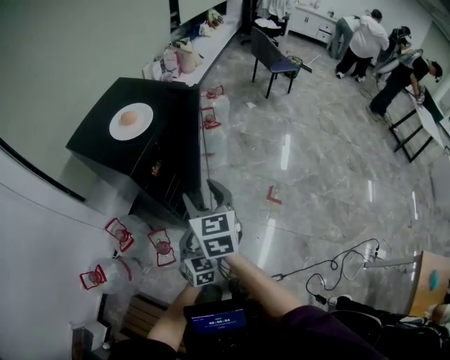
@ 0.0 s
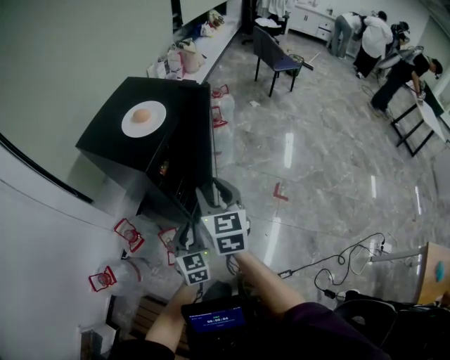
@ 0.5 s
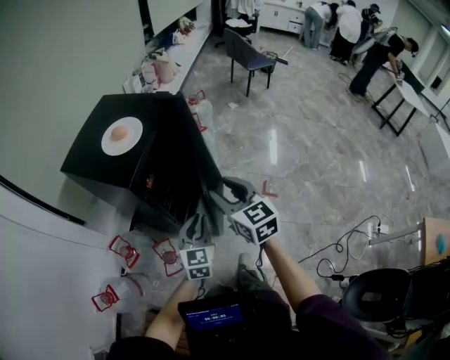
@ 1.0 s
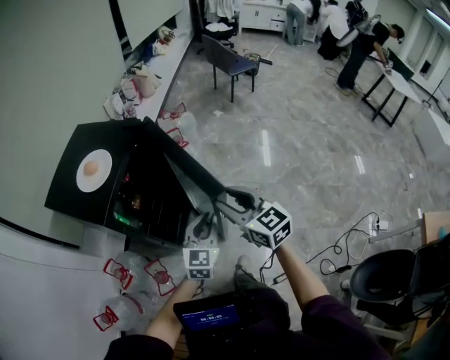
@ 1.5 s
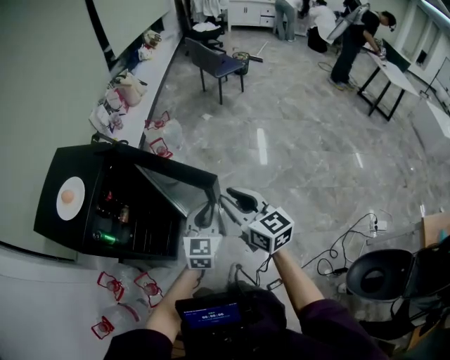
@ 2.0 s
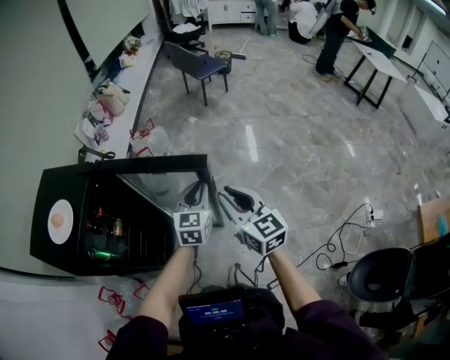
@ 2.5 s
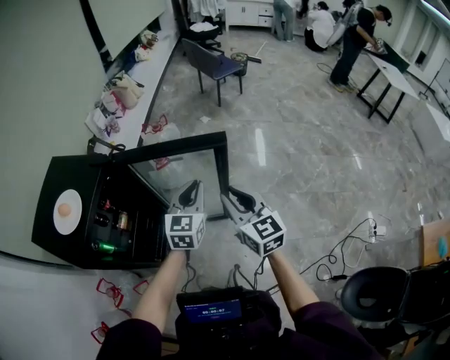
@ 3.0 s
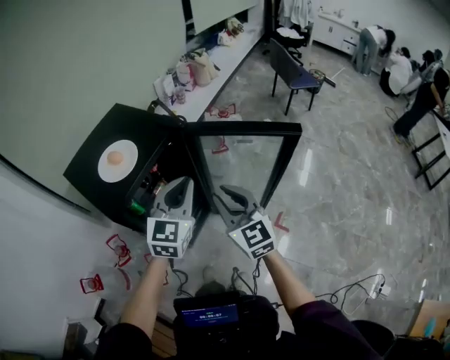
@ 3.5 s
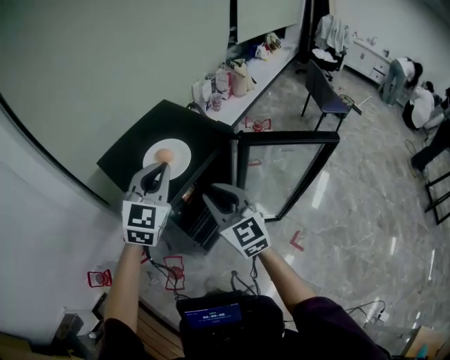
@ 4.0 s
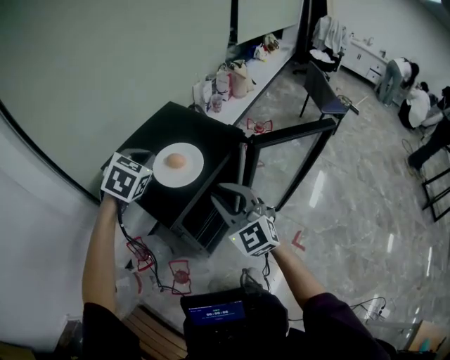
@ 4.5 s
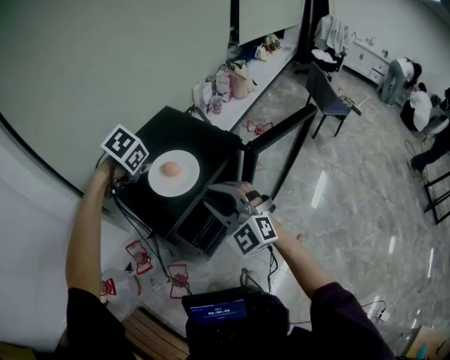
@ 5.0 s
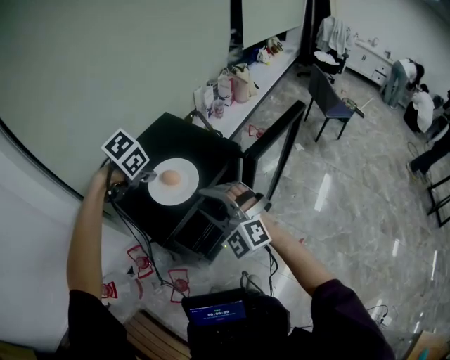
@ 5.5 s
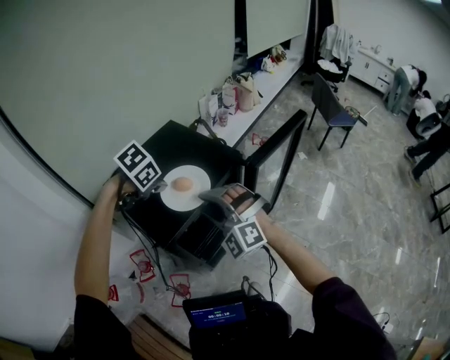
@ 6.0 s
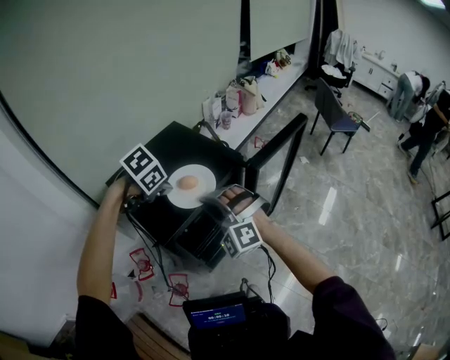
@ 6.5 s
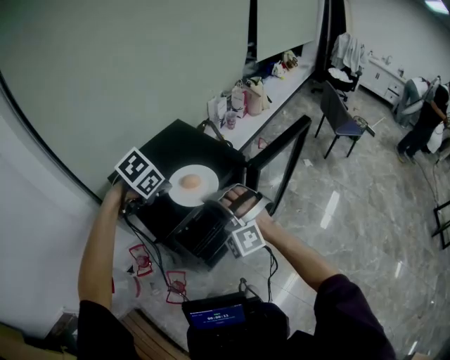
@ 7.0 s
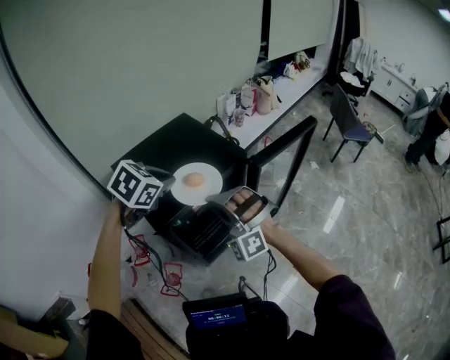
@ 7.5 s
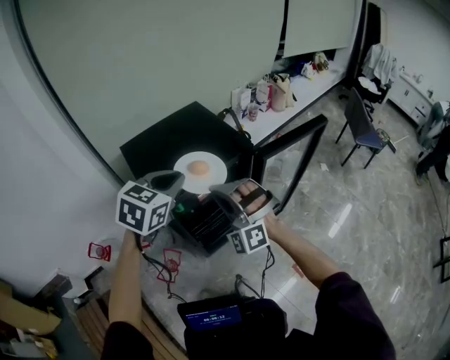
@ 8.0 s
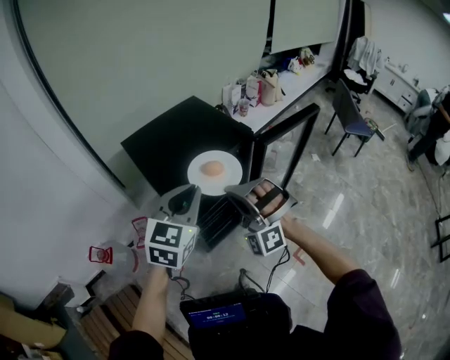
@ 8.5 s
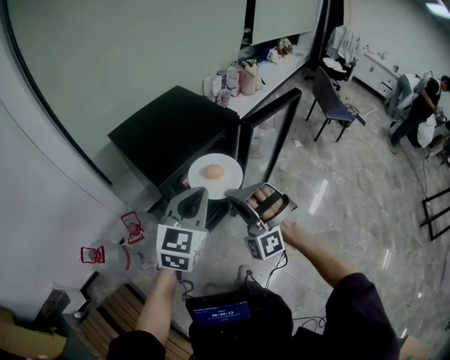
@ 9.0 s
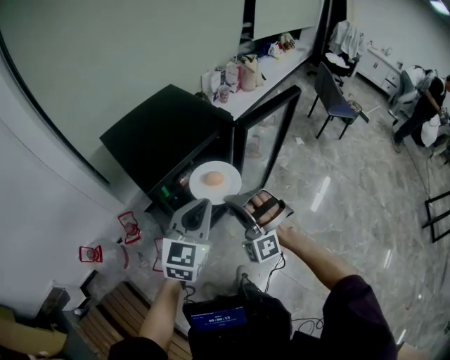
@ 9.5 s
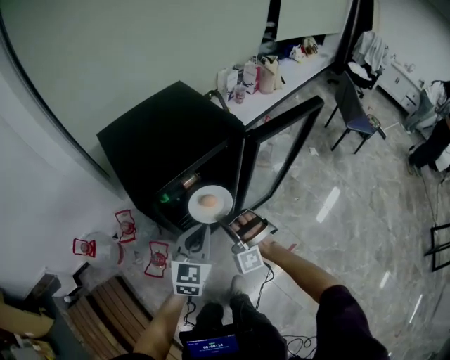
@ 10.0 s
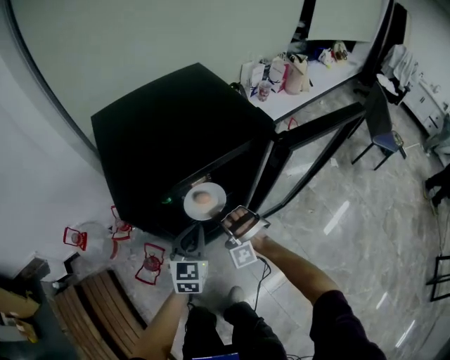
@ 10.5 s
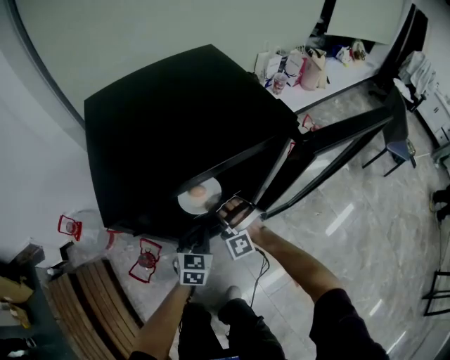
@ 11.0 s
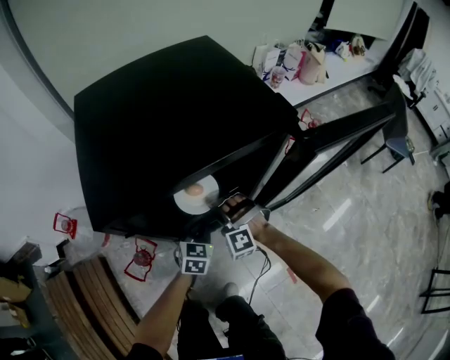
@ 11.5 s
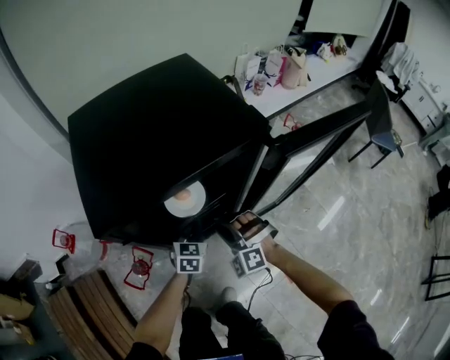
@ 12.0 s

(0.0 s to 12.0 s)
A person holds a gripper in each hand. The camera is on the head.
0.0 s - 2.0 s: The right gripper shifts about 30 cm to the right, and closes. Meanwhile the left gripper moves to the right and forward, approximately 30 cm, and changes its angle by some 30 degrees.
2.0 s - 4.0 s: The right gripper changes place by about 35 cm, and swivels about 40 degrees. The left gripper ends up roughly 50 cm from where it was, and turns by about 30 degrees.
4.0 s - 6.0 s: The left gripper is displaced downward and forward by approximately 10 cm, and angles its fingers downward, by some 60 degrees. Meanwhile the right gripper travels forward by some 5 cm, and twists some 60 degrees counterclockwise, seen from behind.
6.0 s - 8.0 s: The right gripper changes place by about 5 cm, and closes, while the left gripper moves backward, upward and to the right, roughly 15 cm, and points its fingers approximately 40 degrees further upward.
8.0 s - 10.0 s: The left gripper is displaced downward, backward and to the right by roughly 20 cm; the right gripper heads downward, covering approximately 20 cm, and changes its angle by about 20 degrees.
10.0 s - 12.0 s: The left gripper travels downward and forward by roughly 30 cm, and swivels about 20 degrees. Meanwhile the right gripper shifts about 15 cm downward and forward, and changes its angle by roughly 30 degrees.

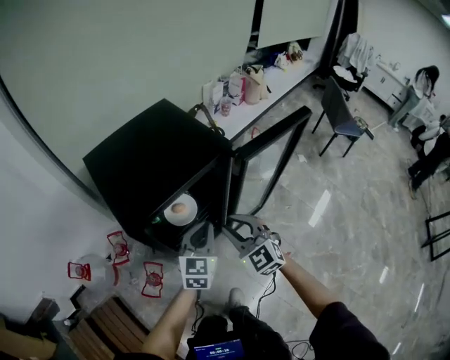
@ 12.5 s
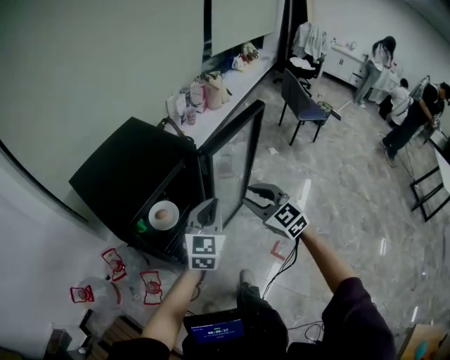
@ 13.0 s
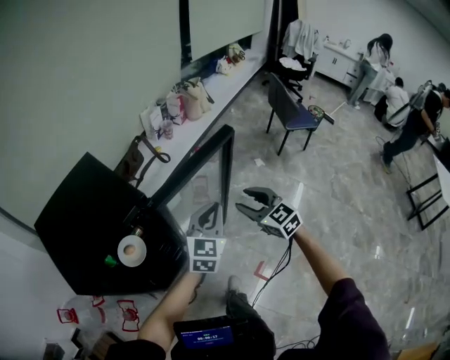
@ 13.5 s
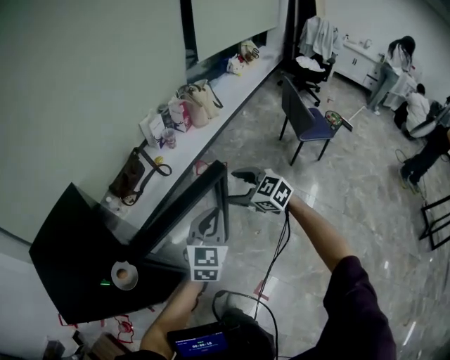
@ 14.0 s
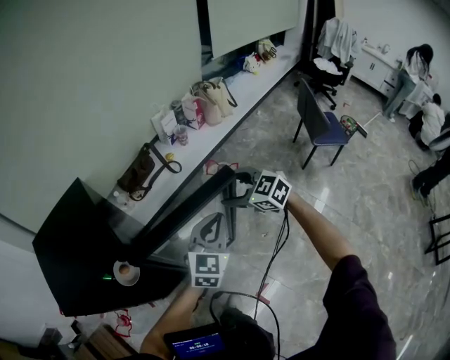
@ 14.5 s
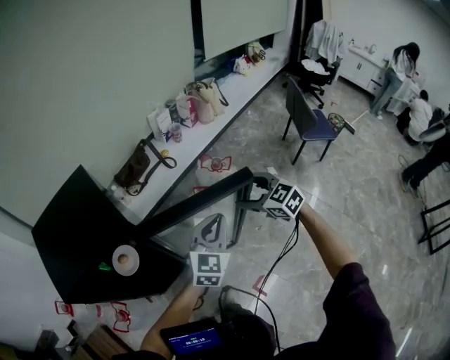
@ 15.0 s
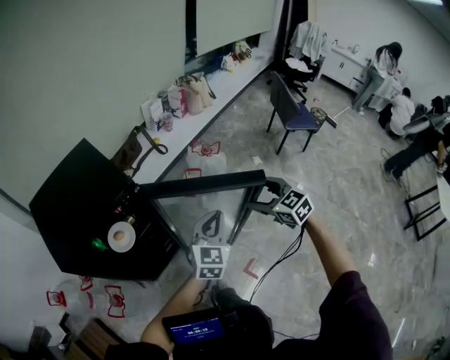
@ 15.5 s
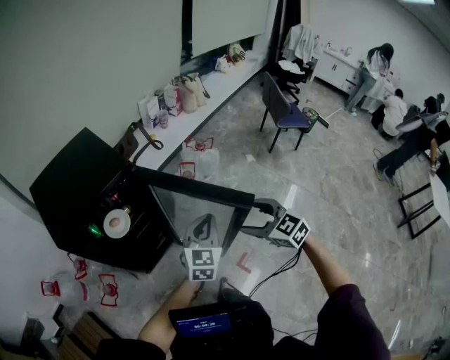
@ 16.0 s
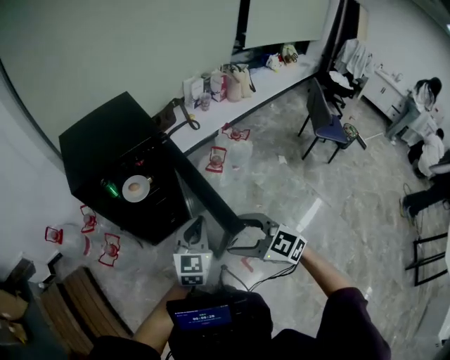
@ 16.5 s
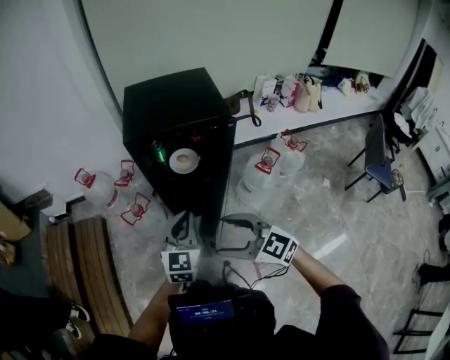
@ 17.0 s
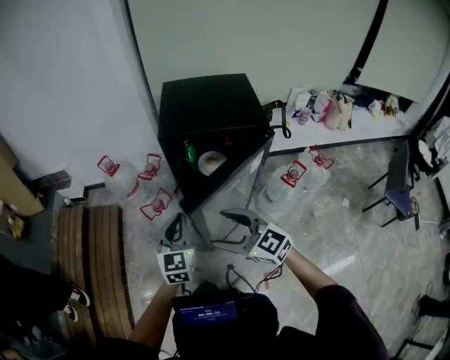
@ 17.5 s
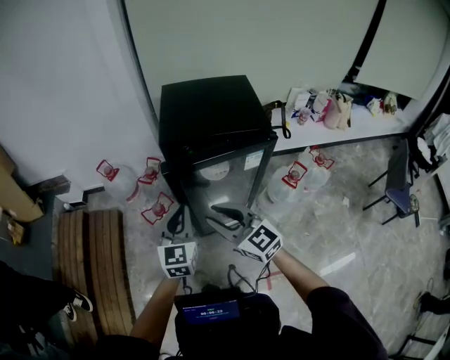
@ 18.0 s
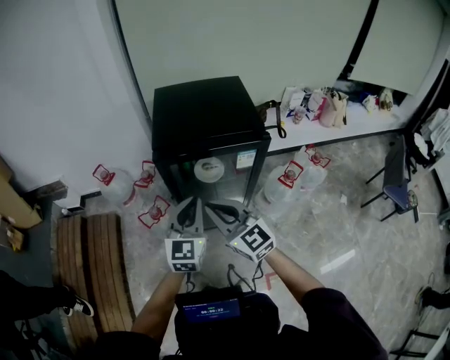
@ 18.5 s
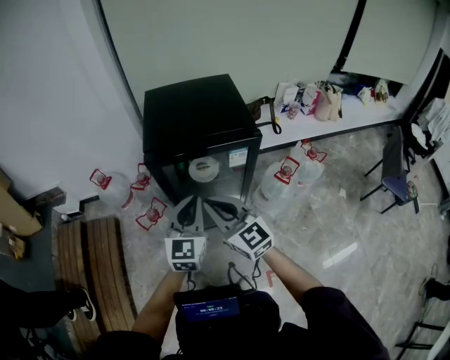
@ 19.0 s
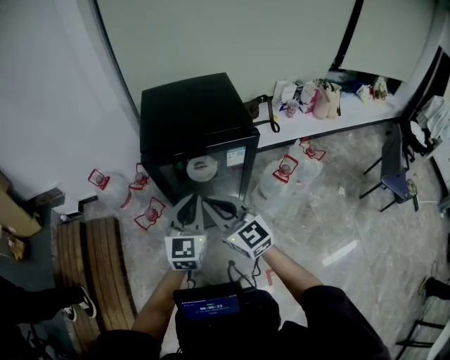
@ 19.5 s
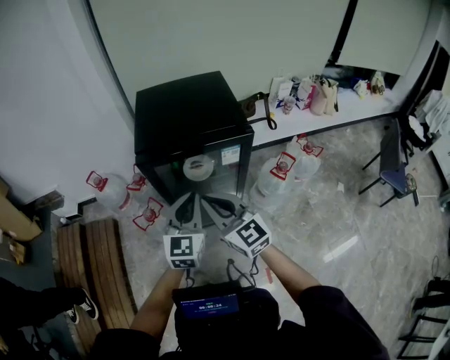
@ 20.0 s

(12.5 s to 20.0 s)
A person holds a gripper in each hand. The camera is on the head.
12.5 s - 14.5 s: The pair of grippers is taken to the right and forward, some 40 cm. The right gripper swivels approximately 30 degrees, and opens.
14.5 s - 16.5 s: The right gripper shifts by about 50 cm, while the left gripper ends up roughly 35 cm from where it was.
16.5 s - 18.0 s: The left gripper moves about 30 cm, and changes its angle by approximately 40 degrees. Meanwhile the right gripper shifts by approximately 25 cm, turns by about 20 degrees, and closes.
18.0 s - 20.0 s: The left gripper travels to the right by about 10 cm; the right gripper heads to the right, covering about 5 cm, and closes up.

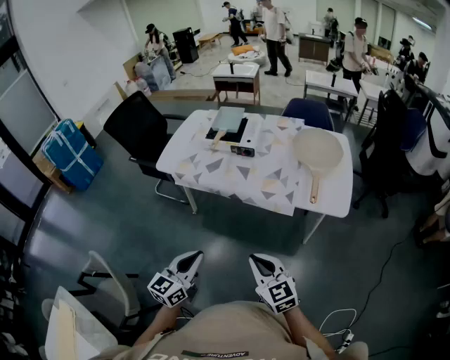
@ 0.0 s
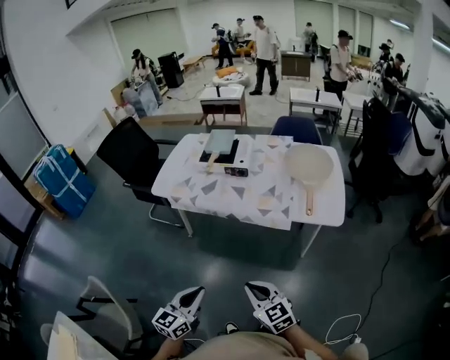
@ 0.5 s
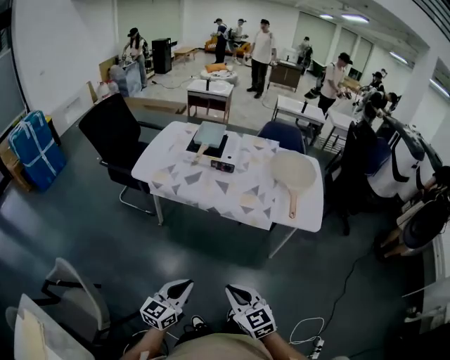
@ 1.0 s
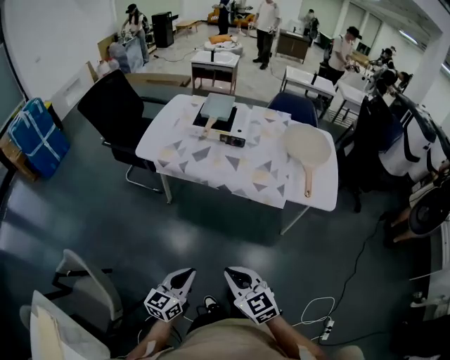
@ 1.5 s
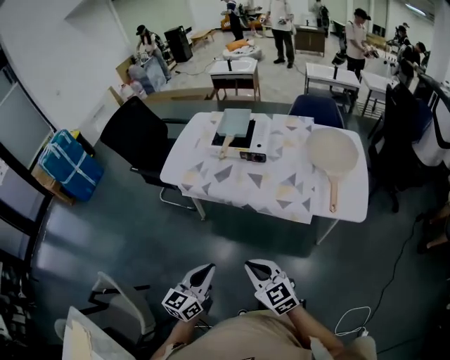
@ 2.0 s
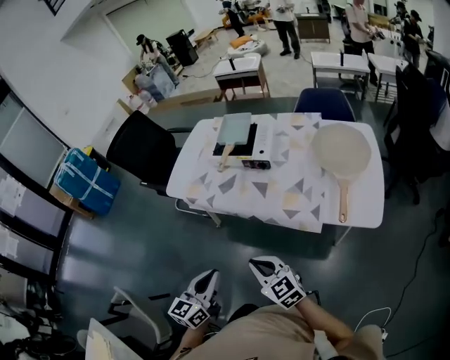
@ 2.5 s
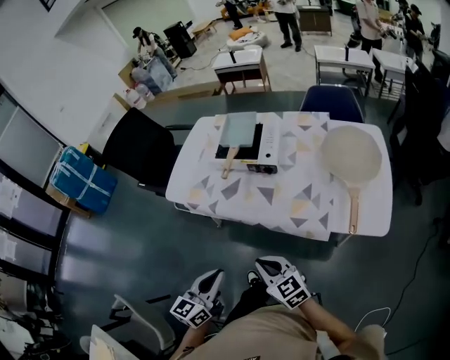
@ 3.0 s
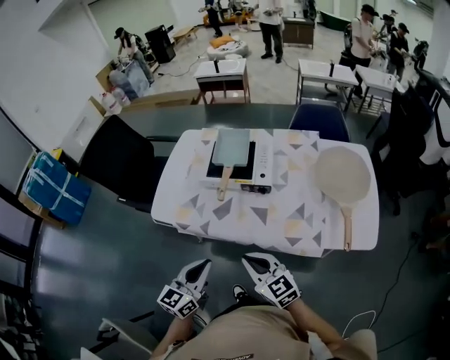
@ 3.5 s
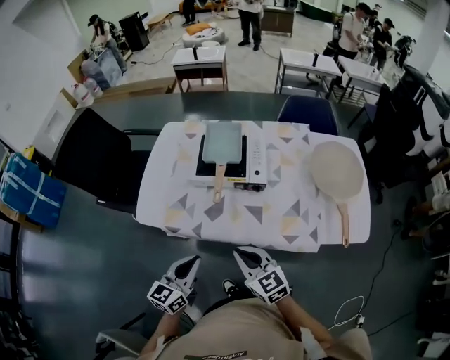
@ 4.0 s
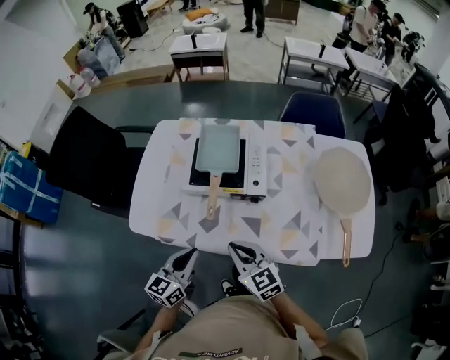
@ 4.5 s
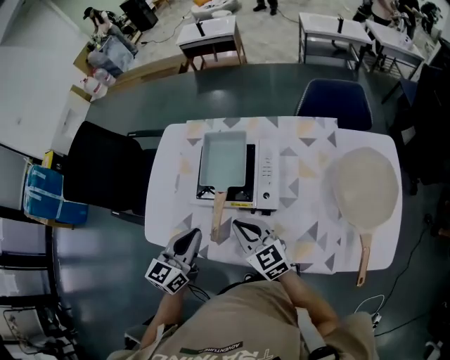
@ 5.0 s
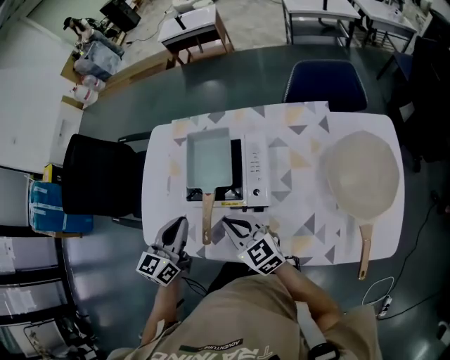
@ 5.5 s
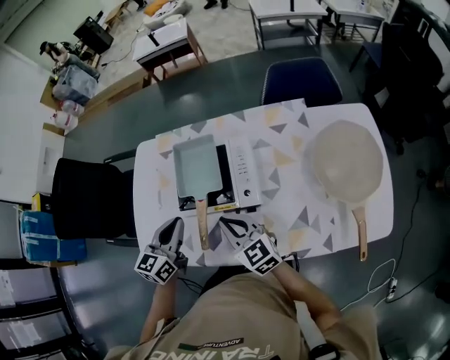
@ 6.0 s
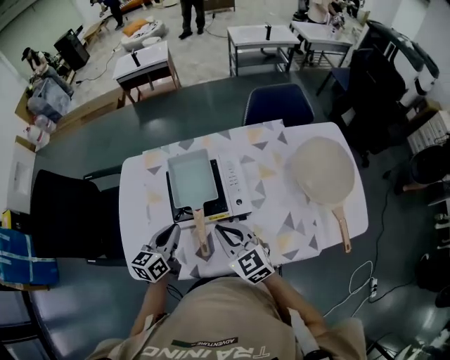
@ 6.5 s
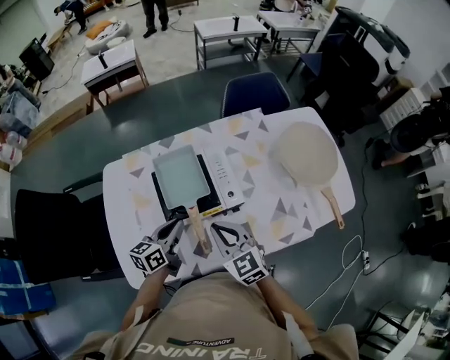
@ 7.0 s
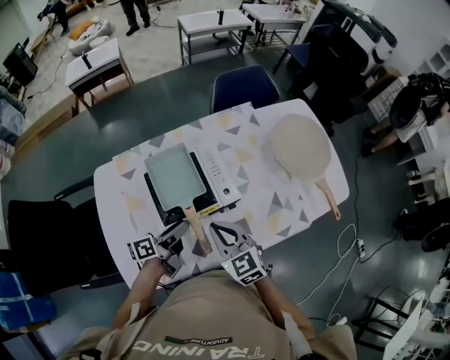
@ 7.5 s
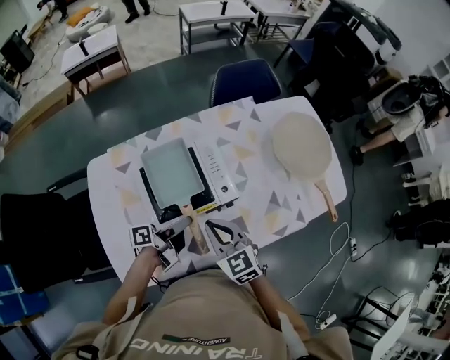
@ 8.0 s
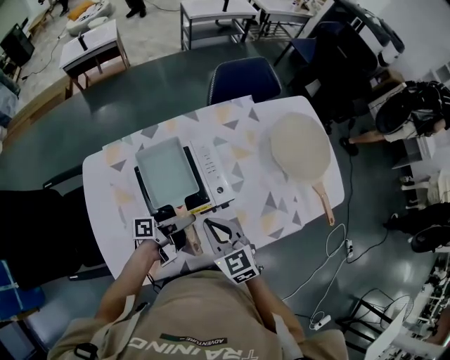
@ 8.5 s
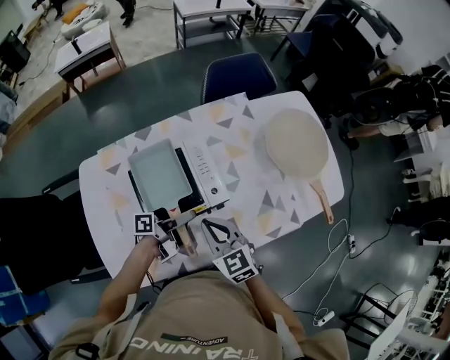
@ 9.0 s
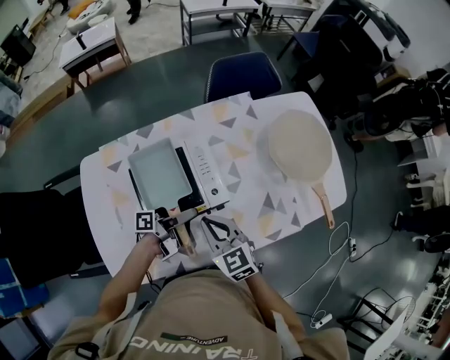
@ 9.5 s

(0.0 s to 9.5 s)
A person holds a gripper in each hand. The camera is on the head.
0.0 s - 2.0 s: The left gripper travels downward and back again, about 10 cm each way, while the right gripper shifts some 10 cm to the left.
2.0 s - 4.0 s: The grippers both shift forward by about 30 cm.
4.0 s - 5.5 s: The two grippers go about 25 cm forward.
5.5 s - 7.5 s: The left gripper goes some 10 cm downward, turns by approximately 70 degrees, and opens its fingers, while the right gripper swivels some 40 degrees.
7.5 s - 9.5 s: The left gripper is displaced to the right by roughly 10 cm, and changes its angle by some 30 degrees.
